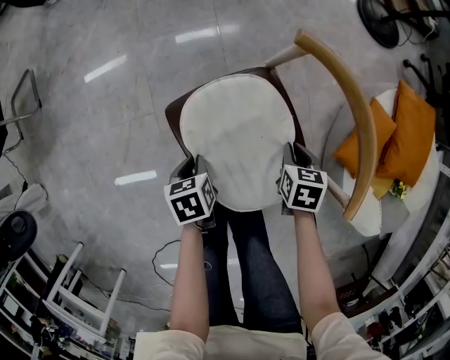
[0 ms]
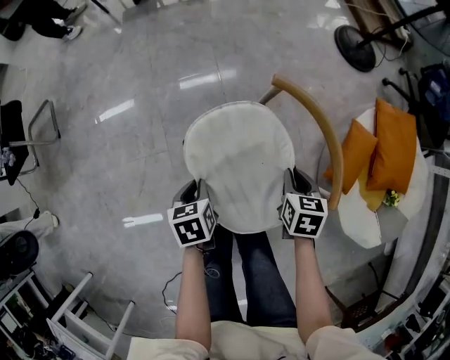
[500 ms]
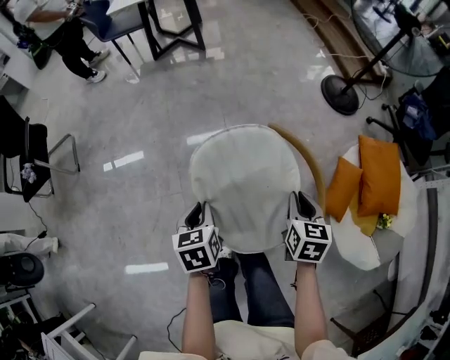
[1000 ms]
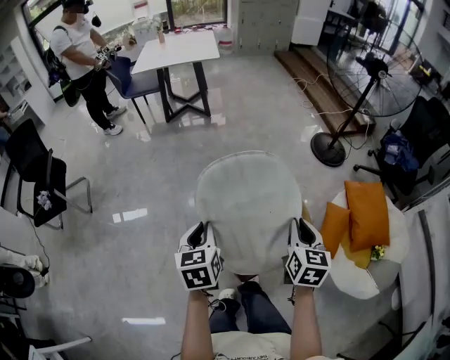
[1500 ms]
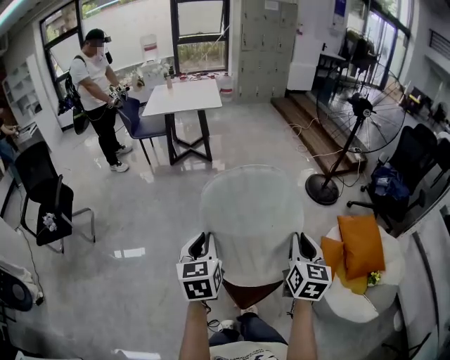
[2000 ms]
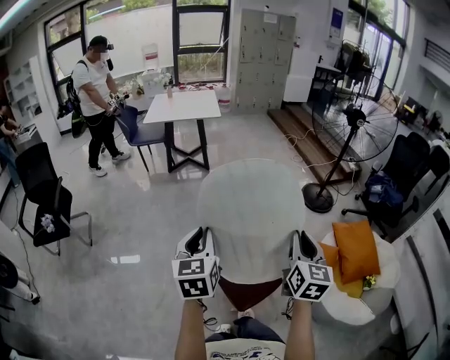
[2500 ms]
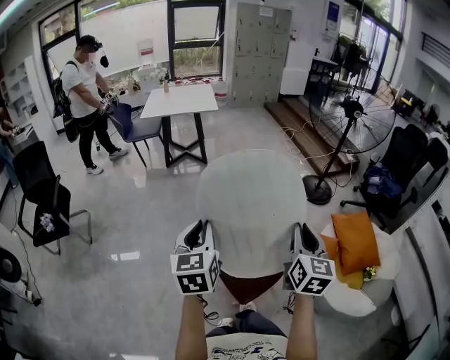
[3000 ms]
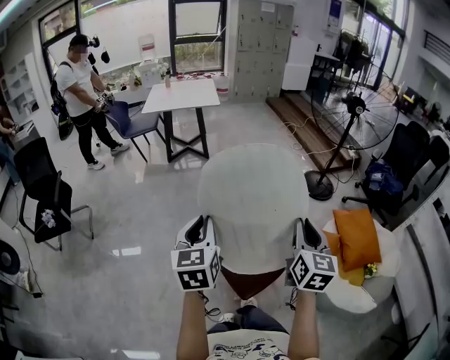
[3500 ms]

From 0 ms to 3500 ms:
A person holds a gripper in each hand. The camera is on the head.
From 0 ms to 2000 ms: Both grippers travel together upward, about 70 cm. The right gripper tips its fingers upward by approximately 50 degrees. The left gripper tilts its fingers some 50 degrees upward.
From 2000 ms to 3500 ms: The right gripper goes approximately 5 cm backward; the left gripper changes place by about 5 cm.

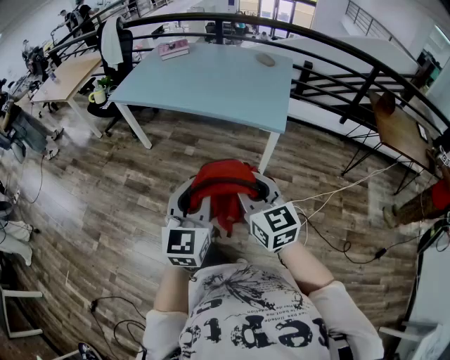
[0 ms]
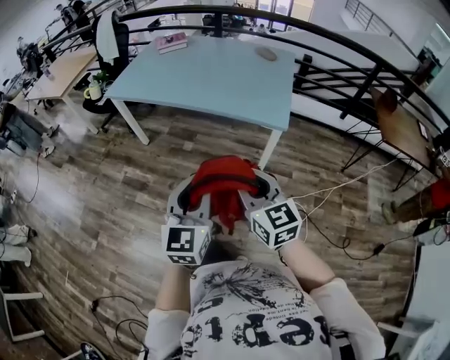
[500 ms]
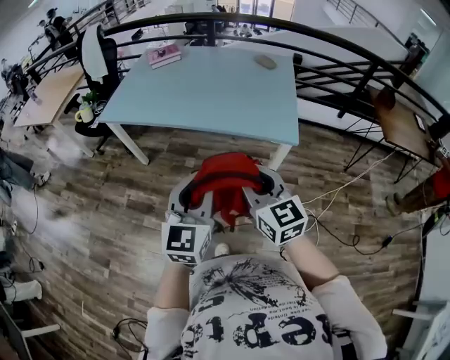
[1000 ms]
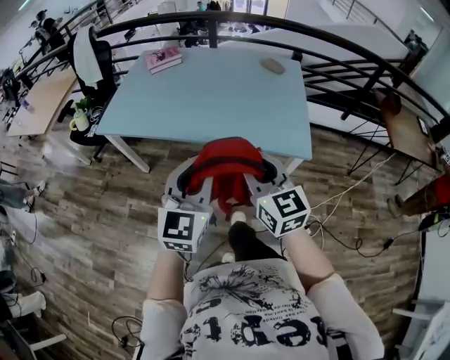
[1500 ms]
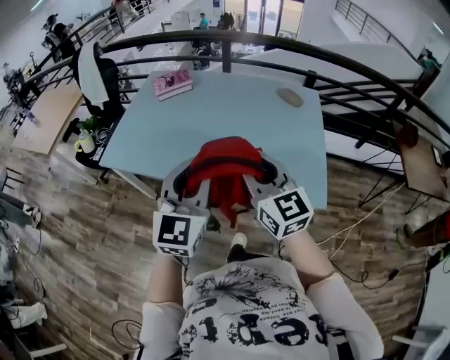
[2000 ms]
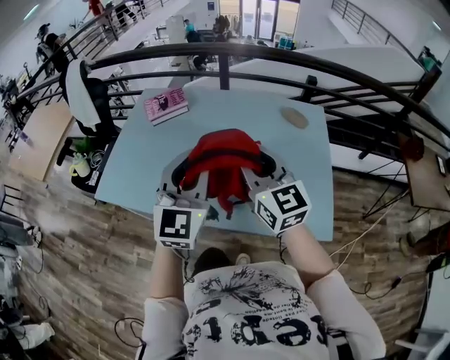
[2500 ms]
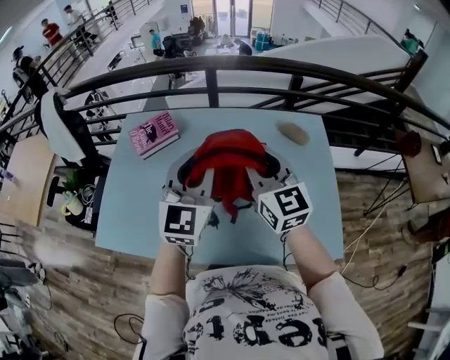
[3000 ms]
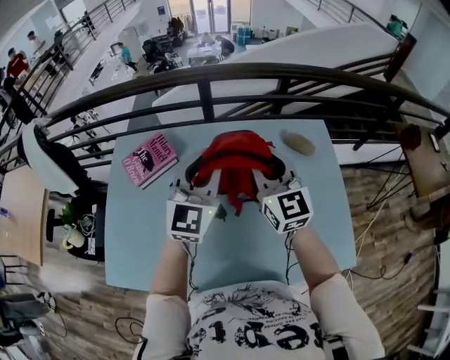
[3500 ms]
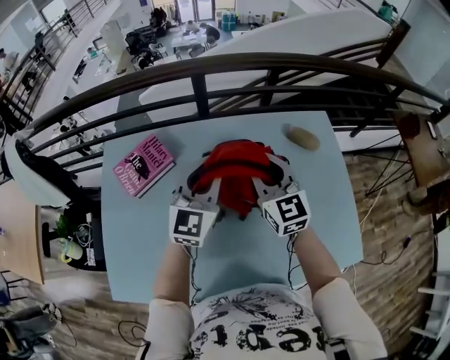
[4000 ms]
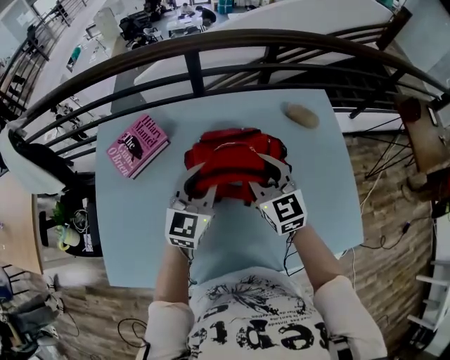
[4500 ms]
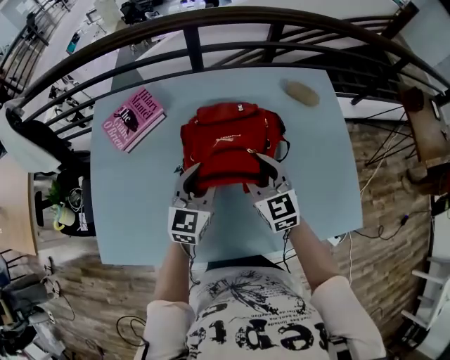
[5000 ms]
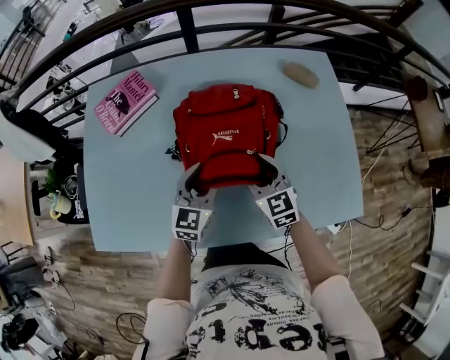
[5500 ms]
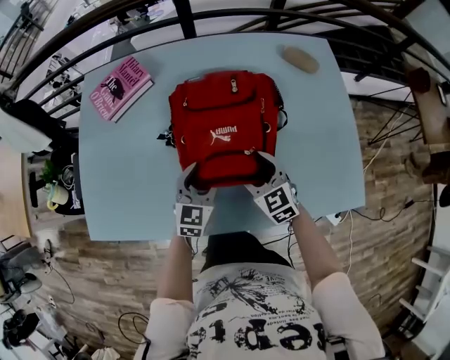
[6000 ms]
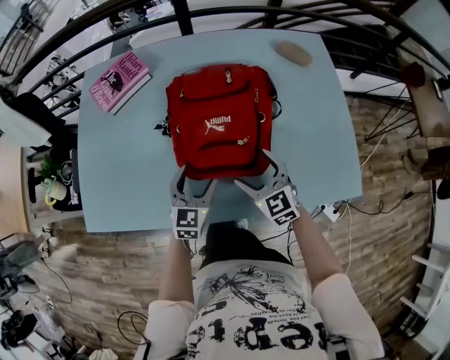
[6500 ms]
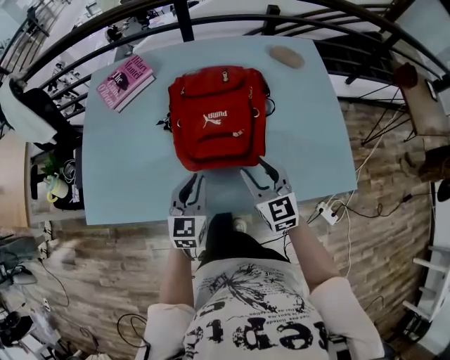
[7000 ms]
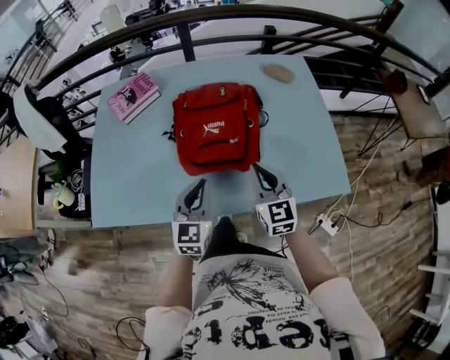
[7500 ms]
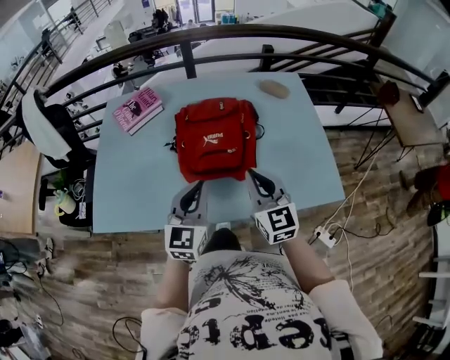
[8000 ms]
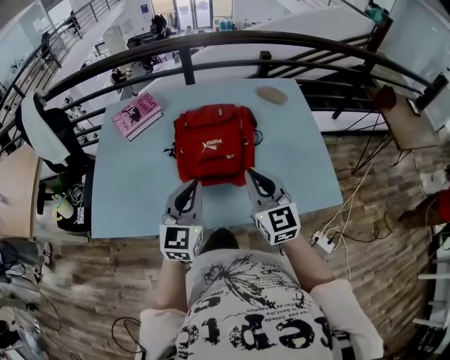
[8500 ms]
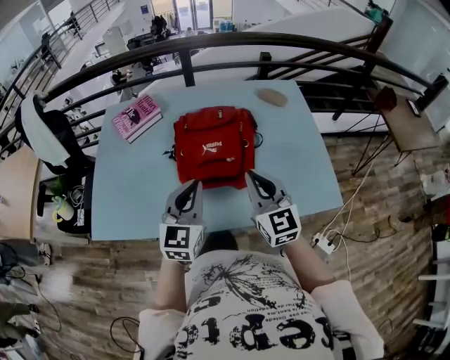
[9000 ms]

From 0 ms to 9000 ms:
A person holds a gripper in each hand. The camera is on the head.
From 0 ms to 2000 ms: The two grippers travel together, forward, about 50 cm.
From 2000 ms to 4500 ms: The pair of grippers is taken forward, some 50 cm. The left gripper swivels about 30 degrees. The right gripper swivels roughly 30 degrees.
From 4500 ms to 7000 ms: The grippers both shift backward and downward by some 30 cm. The left gripper opens and closes again; the right gripper opens and closes again.
From 7000 ms to 9000 ms: The two grippers go about 15 cm upward. The right gripper closes its fingers.

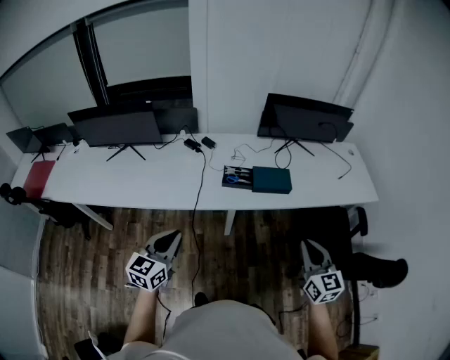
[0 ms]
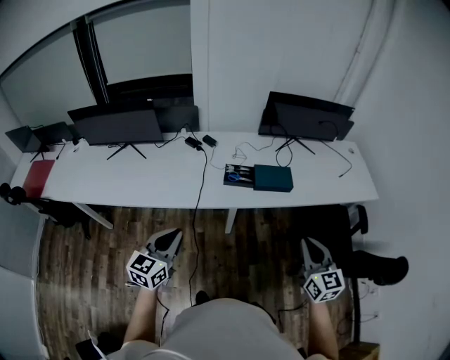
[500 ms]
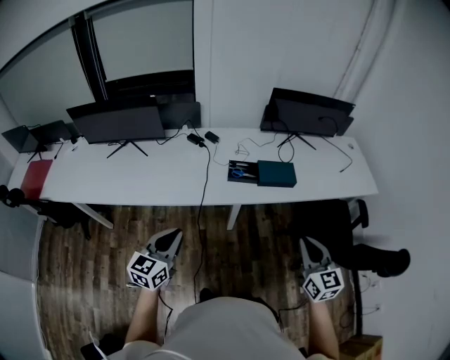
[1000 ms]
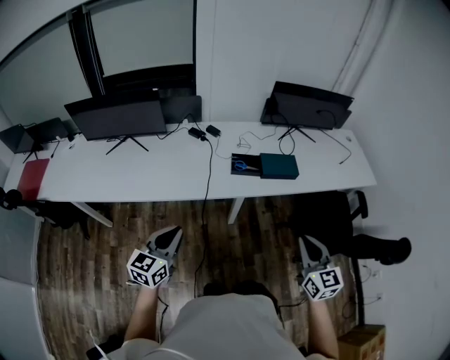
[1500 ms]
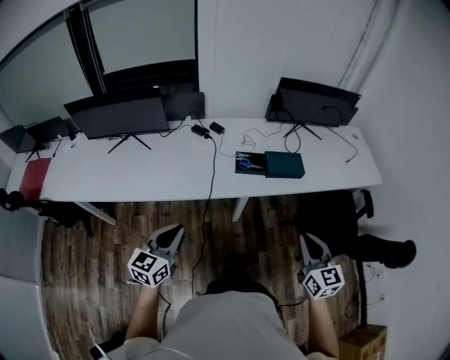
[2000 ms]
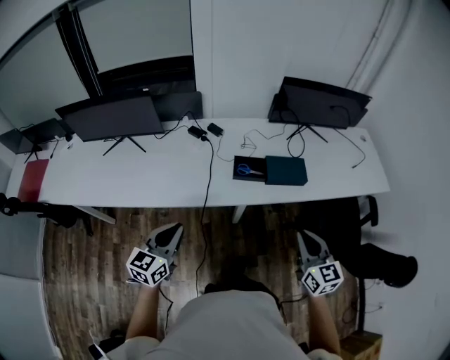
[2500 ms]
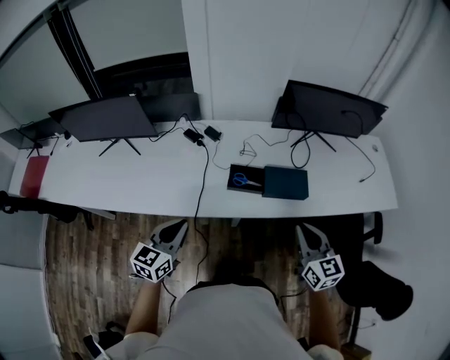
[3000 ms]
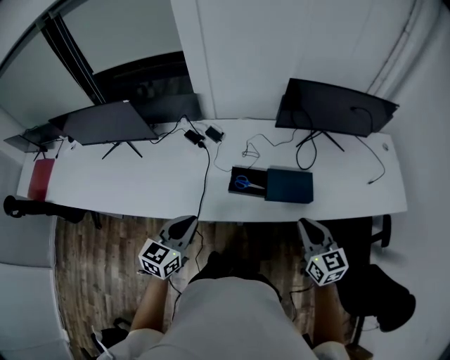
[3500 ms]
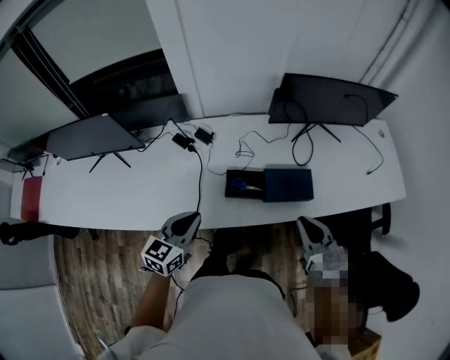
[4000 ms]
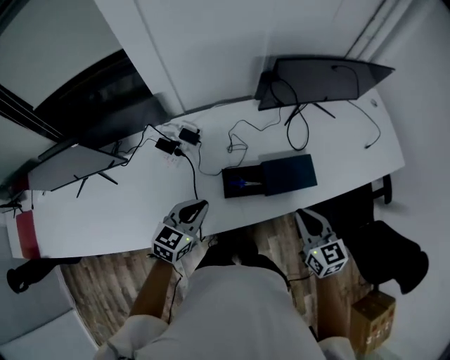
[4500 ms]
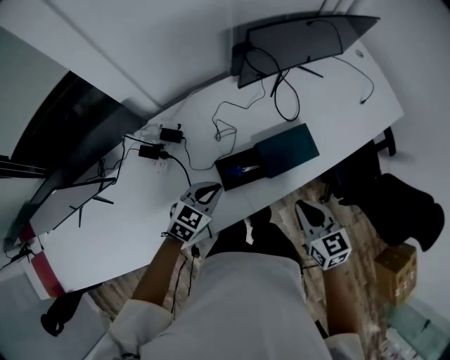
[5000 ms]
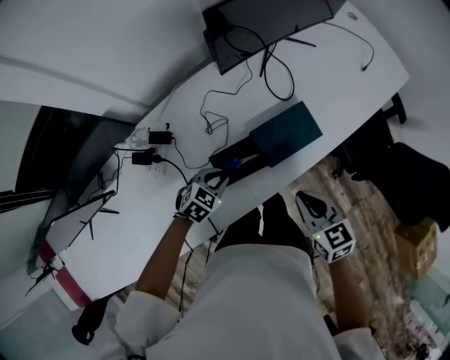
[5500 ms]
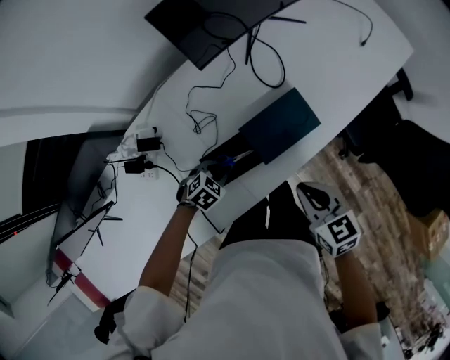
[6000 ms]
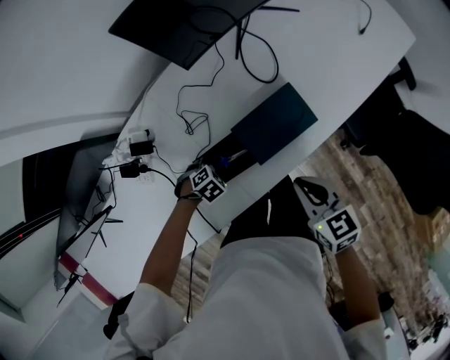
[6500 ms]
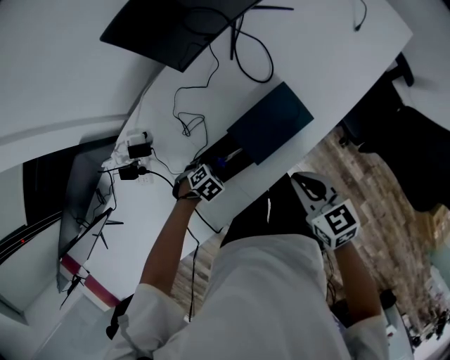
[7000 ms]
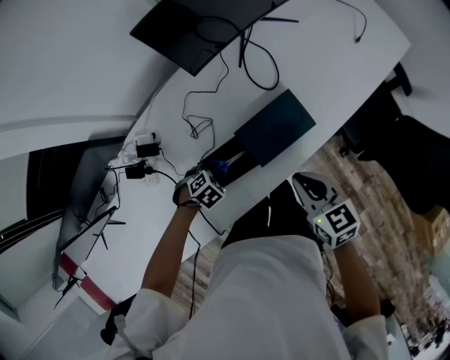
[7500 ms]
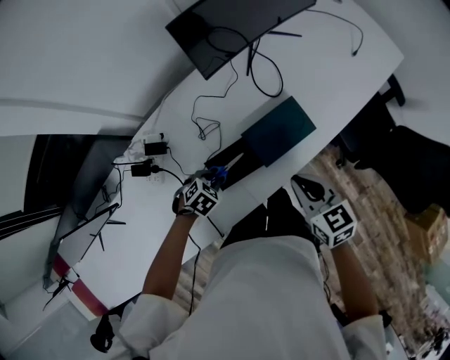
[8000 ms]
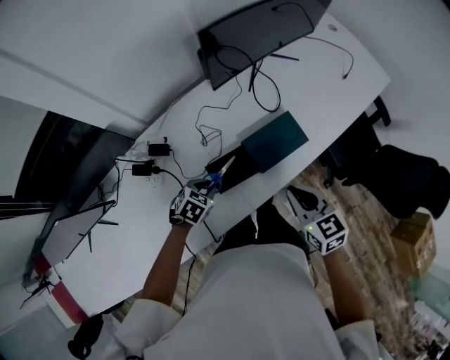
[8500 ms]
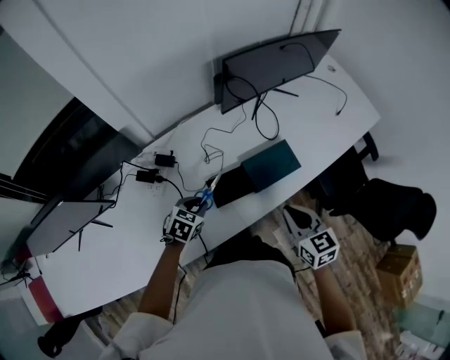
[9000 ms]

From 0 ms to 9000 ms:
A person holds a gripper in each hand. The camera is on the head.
From 0 ms to 2000 ms: The grippers both shift to the left by some 10 cm.
From 2000 ms to 4500 ms: The two grippers go approximately 40 cm forward. The left gripper changes its angle by about 20 degrees.
From 4500 ms to 7000 ms: The left gripper is displaced downward by approximately 30 cm, and points its fingers about 60 degrees further downward. The right gripper is displaced downward by roughly 15 cm, and changes its angle by some 20 degrees.
From 7000 ms to 9000 ms: The left gripper moves upward, about 20 cm, and angles its fingers upward, by approximately 30 degrees. Meanwhile the right gripper moves upward, approximately 10 cm.

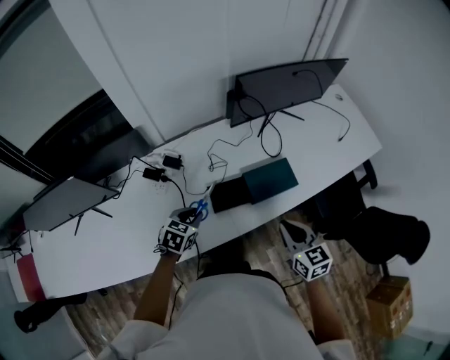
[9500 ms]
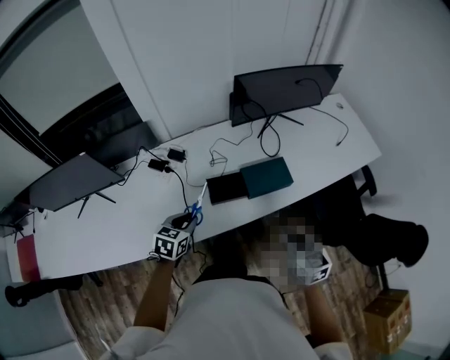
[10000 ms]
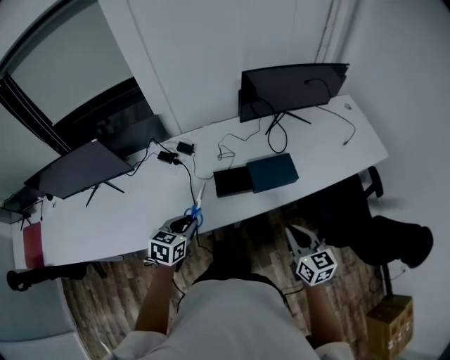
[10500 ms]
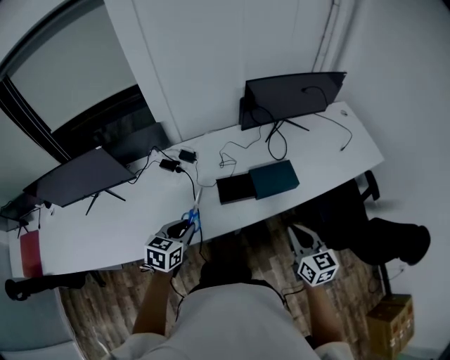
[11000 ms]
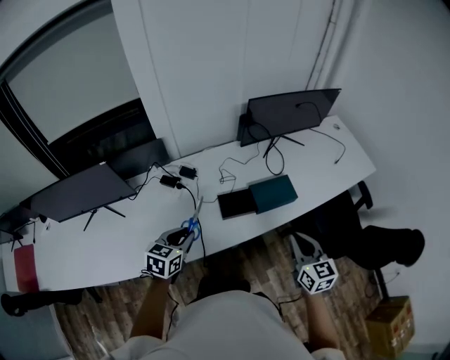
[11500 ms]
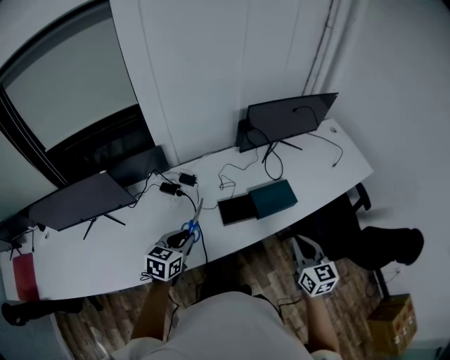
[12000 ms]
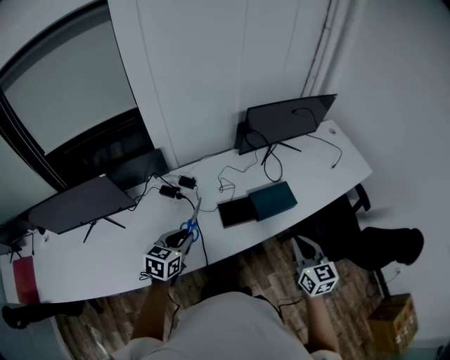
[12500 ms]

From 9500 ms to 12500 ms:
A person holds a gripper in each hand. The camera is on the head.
From 9500 ms to 11000 ms: The right gripper goes about 10 cm backward, while the left gripper shifts about 15 cm backward and upward.
From 11000 ms to 12500 ms: The left gripper moves to the left, roughly 5 cm.

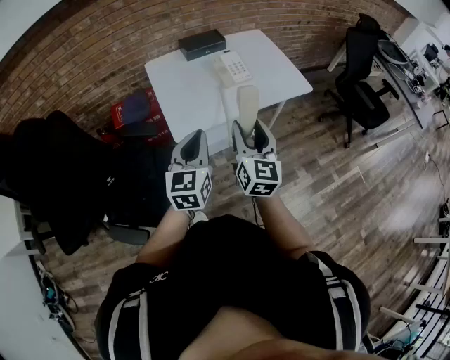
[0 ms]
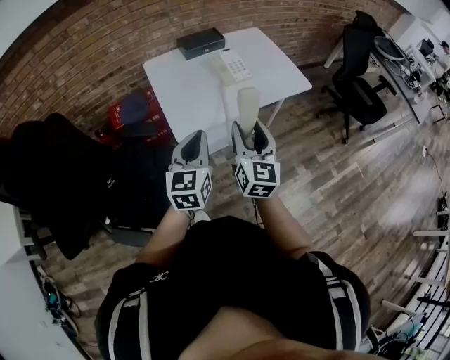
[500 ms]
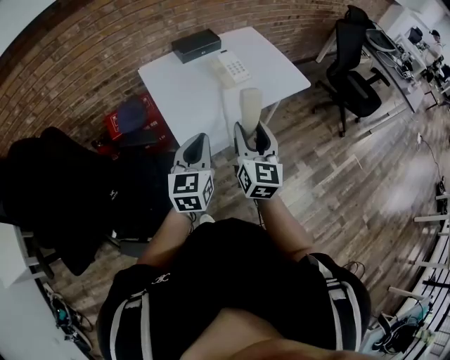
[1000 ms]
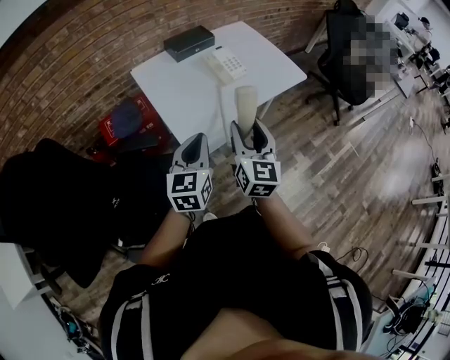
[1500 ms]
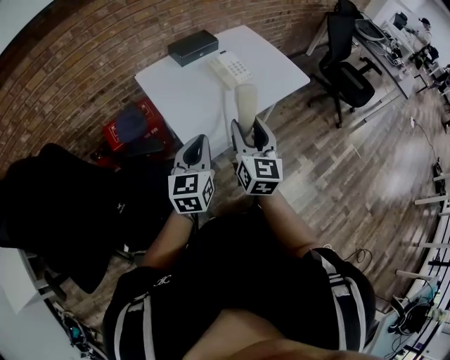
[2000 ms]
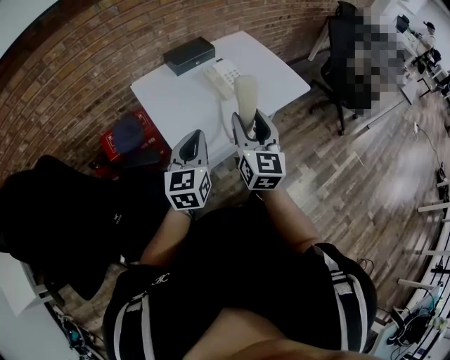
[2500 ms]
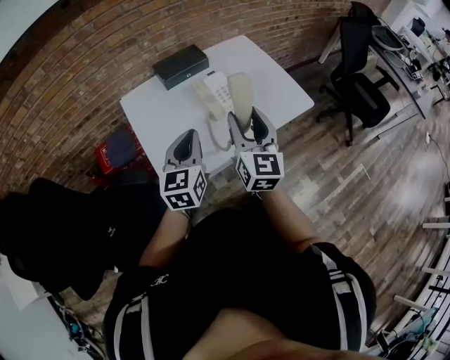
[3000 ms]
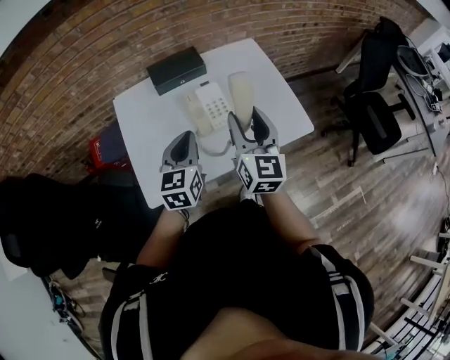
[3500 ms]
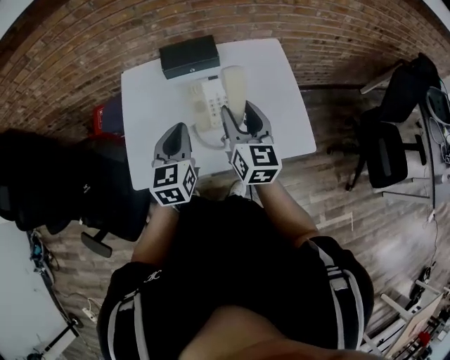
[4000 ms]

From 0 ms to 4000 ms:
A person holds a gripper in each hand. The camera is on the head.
From 0 ms to 2000 ms: The two grippers go approximately 10 cm to the left.
From 2000 ms to 4000 ms: The right gripper shifts by roughly 40 cm, and swivels approximately 30 degrees, while the left gripper shifts by approximately 35 cm, and changes its angle by about 30 degrees.
